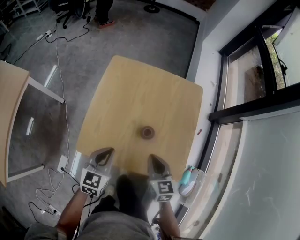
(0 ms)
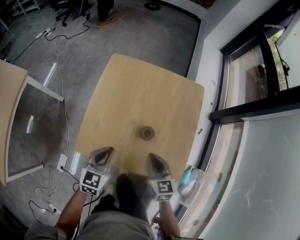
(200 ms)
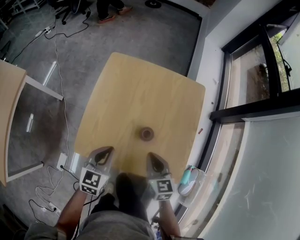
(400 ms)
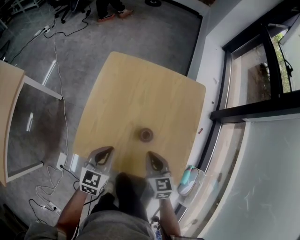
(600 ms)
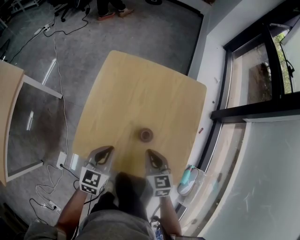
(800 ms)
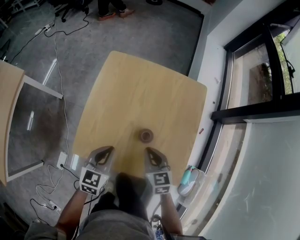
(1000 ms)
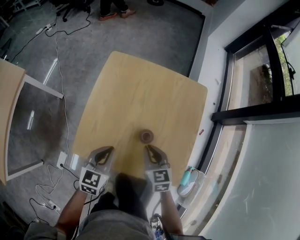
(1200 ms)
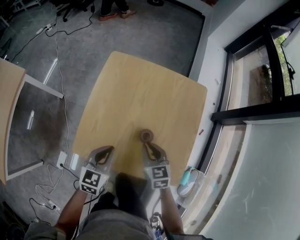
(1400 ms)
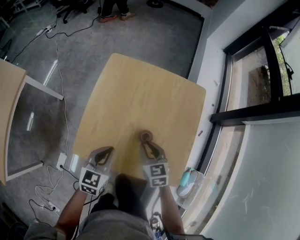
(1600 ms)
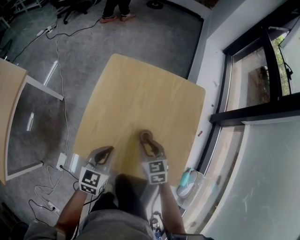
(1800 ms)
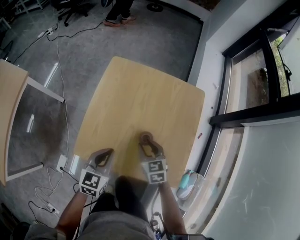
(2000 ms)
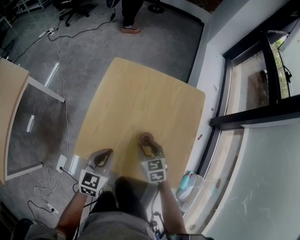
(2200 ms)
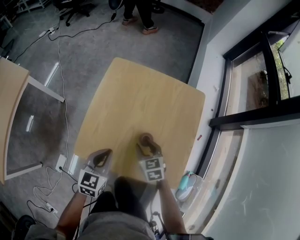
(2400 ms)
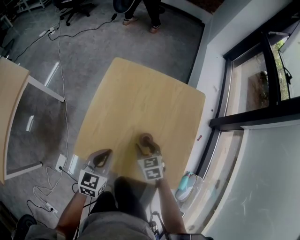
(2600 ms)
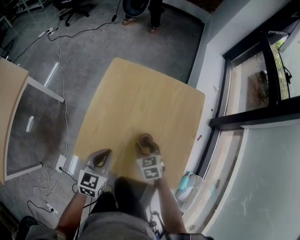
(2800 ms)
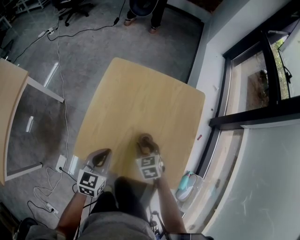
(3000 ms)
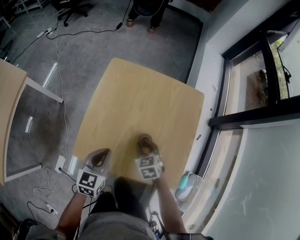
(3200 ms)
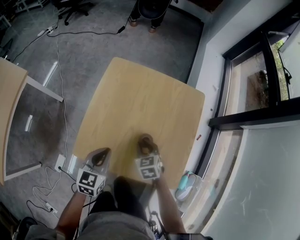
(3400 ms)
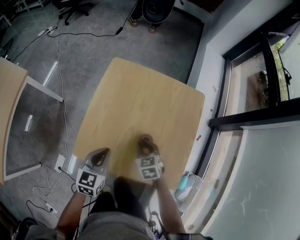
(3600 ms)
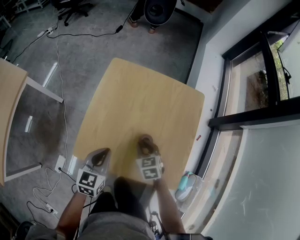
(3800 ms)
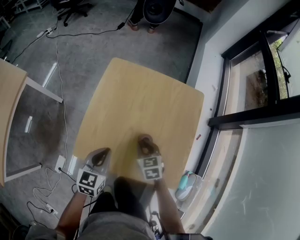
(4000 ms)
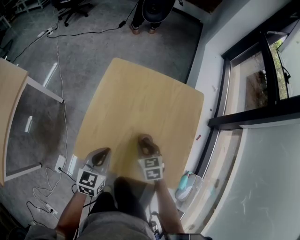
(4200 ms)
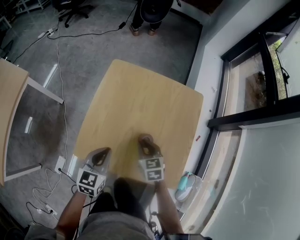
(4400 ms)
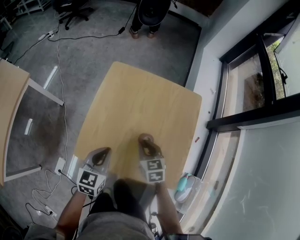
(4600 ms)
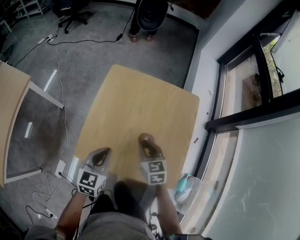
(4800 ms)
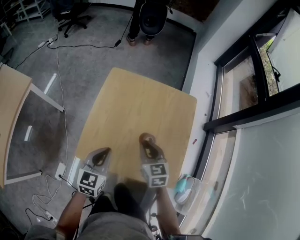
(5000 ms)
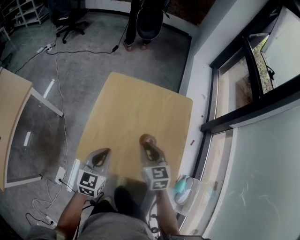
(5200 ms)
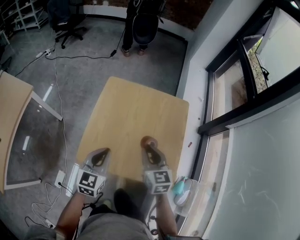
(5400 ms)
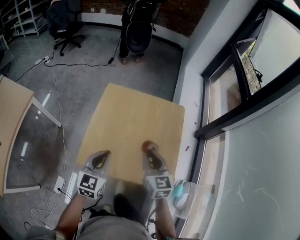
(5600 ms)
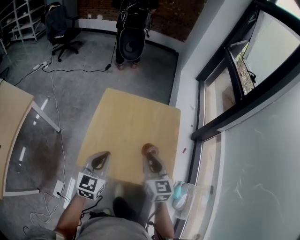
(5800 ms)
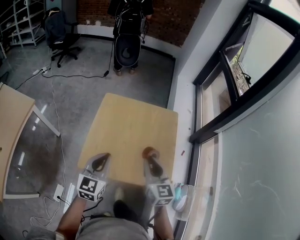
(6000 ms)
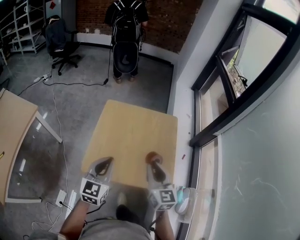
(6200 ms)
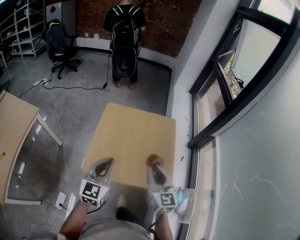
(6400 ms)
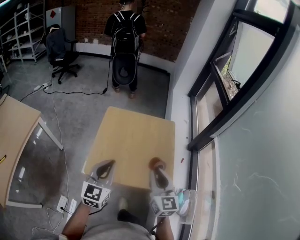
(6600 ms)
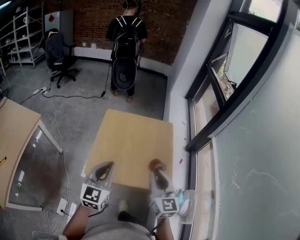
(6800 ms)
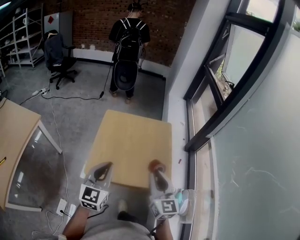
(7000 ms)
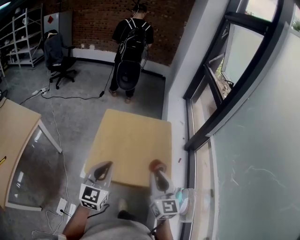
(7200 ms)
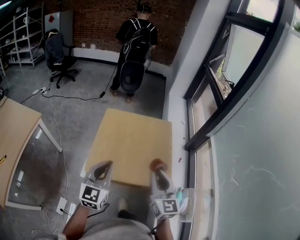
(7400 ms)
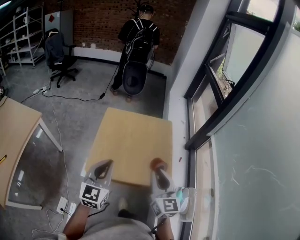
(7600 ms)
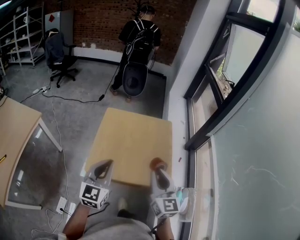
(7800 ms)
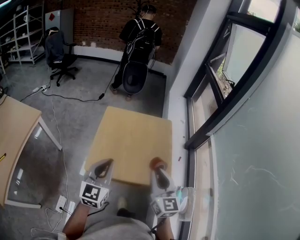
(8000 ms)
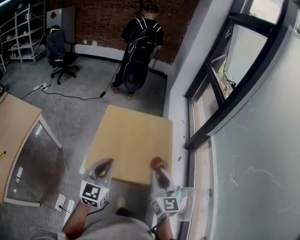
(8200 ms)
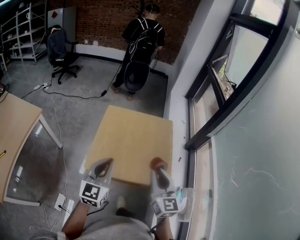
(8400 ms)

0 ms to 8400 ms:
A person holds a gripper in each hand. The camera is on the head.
0 ms to 1400 ms: The right gripper moves forward and downward, approximately 10 cm.
1400 ms to 2800 ms: The right gripper moves some 5 cm, and opens.
2800 ms to 4200 ms: The right gripper closes up.
4200 ms to 5600 ms: The left gripper is displaced upward by some 10 cm. Meanwhile the right gripper is displaced upward by some 20 cm, and rotates about 30 degrees.
5600 ms to 7000 ms: The right gripper travels backward and upward by approximately 20 cm. Meanwhile the left gripper heads upward and backward, covering about 15 cm.
7000 ms to 8400 ms: Both grippers stay put.

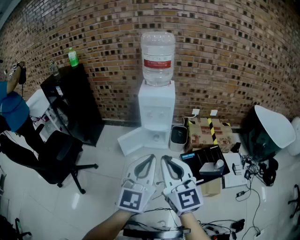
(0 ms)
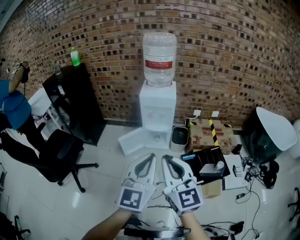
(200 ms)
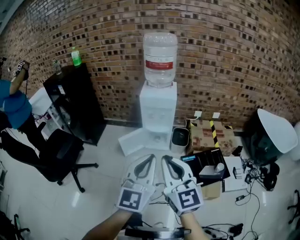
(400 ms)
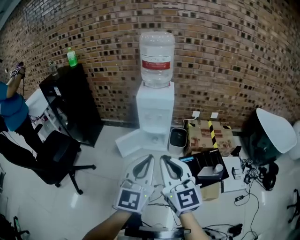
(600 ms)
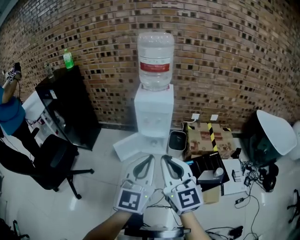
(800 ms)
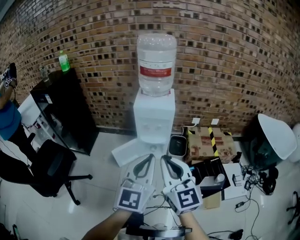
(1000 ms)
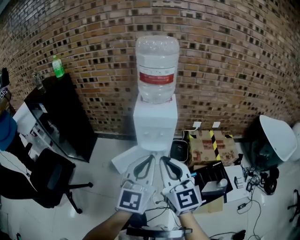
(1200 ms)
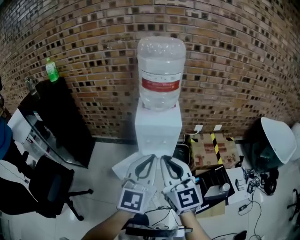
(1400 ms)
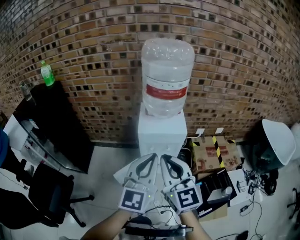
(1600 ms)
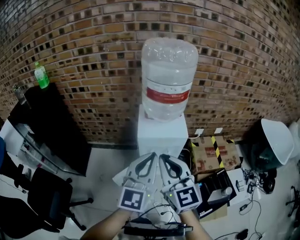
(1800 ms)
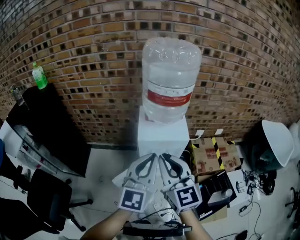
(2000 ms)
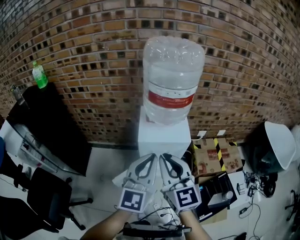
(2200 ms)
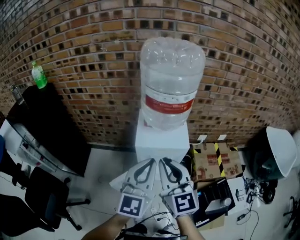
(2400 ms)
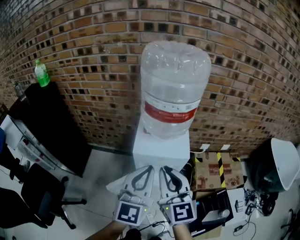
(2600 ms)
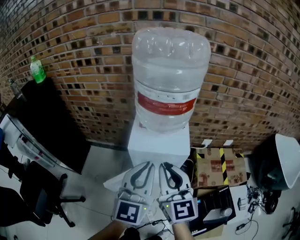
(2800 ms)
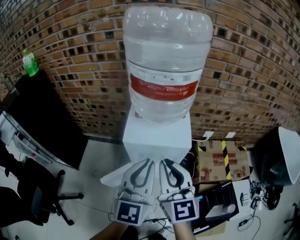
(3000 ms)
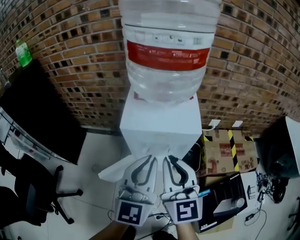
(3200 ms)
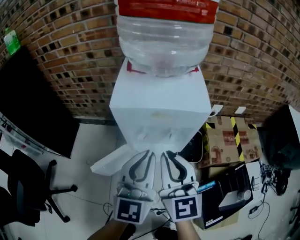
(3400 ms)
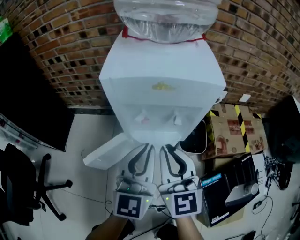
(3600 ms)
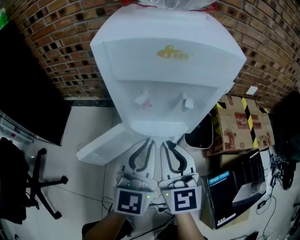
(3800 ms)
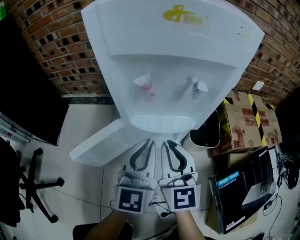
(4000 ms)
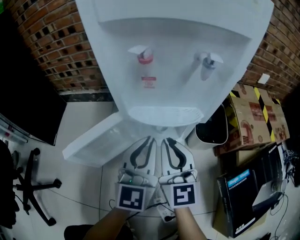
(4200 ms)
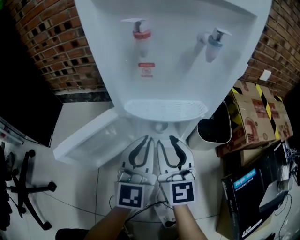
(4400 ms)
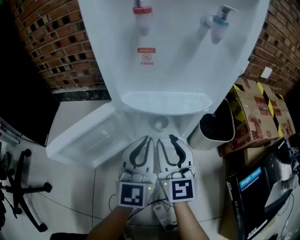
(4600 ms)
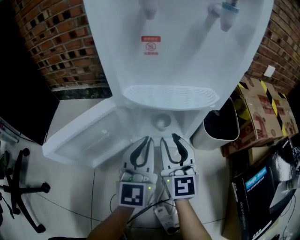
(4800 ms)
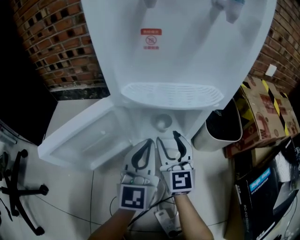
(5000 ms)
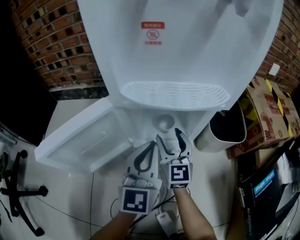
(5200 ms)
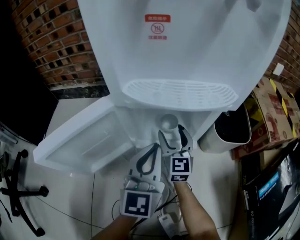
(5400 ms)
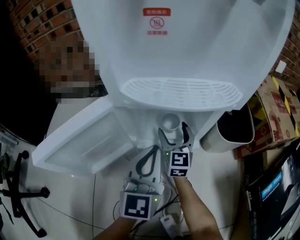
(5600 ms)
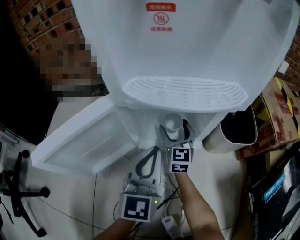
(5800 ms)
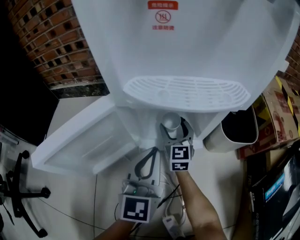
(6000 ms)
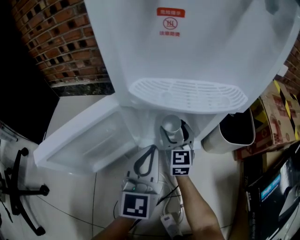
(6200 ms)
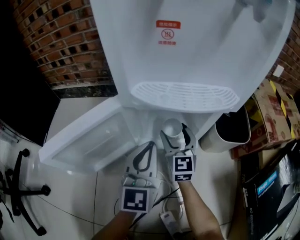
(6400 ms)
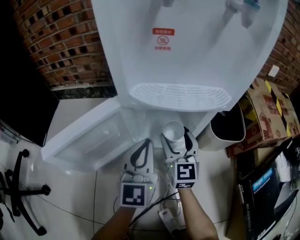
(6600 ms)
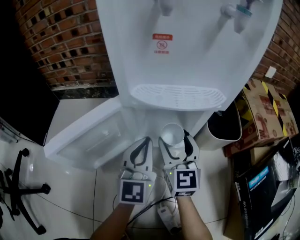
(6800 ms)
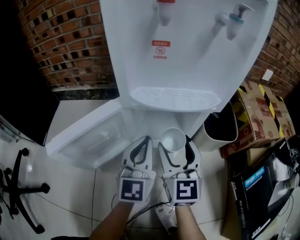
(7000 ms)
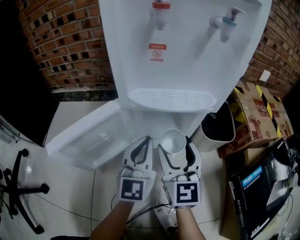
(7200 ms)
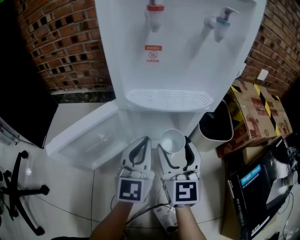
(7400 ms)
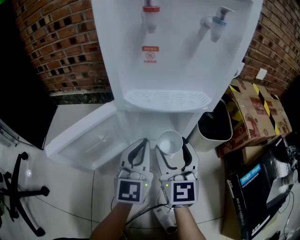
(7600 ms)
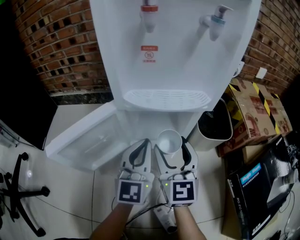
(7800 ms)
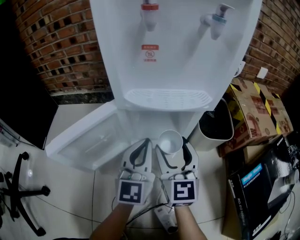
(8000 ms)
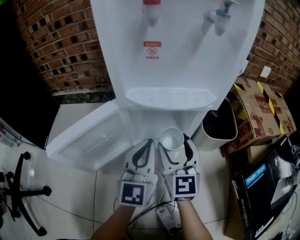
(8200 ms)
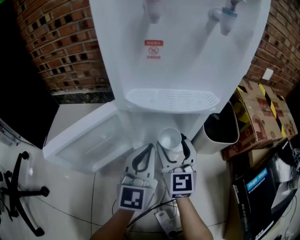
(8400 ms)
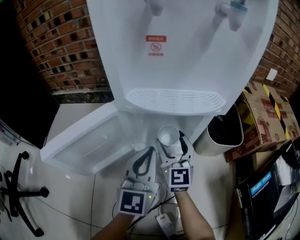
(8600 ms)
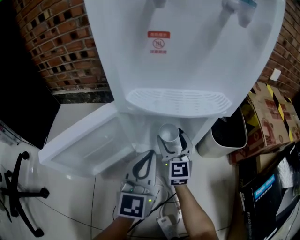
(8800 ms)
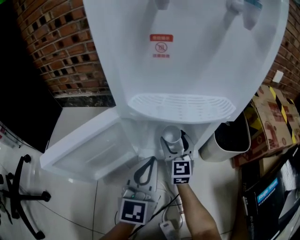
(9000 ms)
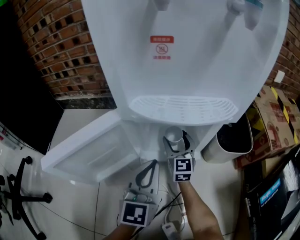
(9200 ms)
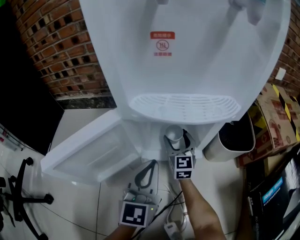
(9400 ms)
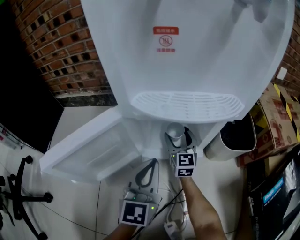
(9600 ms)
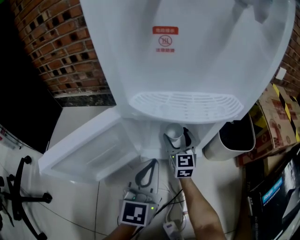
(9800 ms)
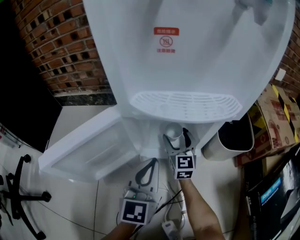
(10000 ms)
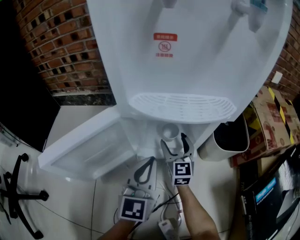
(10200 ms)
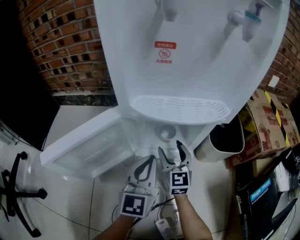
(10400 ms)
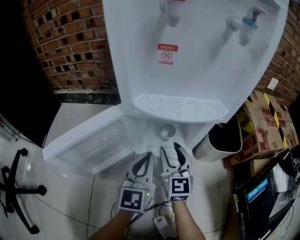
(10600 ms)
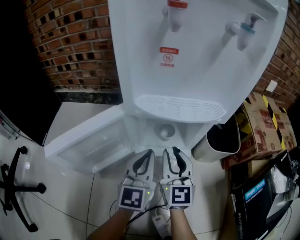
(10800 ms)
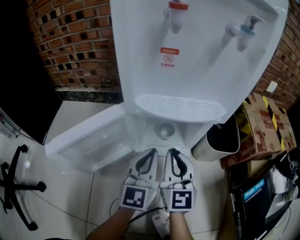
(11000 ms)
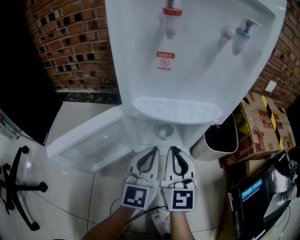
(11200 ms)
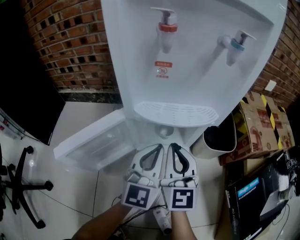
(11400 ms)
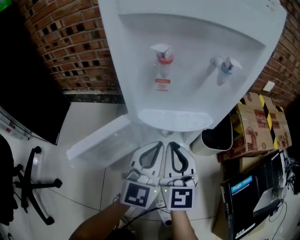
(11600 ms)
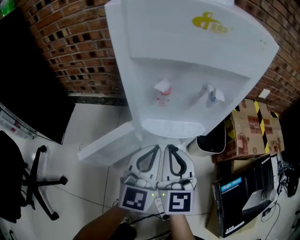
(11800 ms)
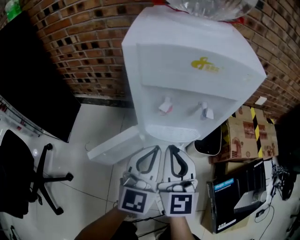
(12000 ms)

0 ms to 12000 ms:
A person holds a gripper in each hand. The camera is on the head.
0 ms to 1600 ms: The two grippers go roughly 35 cm forward.
1600 ms to 3000 ms: The grippers both shift forward and downward by approximately 20 cm.
3000 ms to 4400 ms: The two grippers go roughly 50 cm downward.
4400 ms to 6000 ms: The left gripper goes about 15 cm downward; the right gripper goes some 30 cm downward and forward, and opens its fingers.
6000 ms to 7600 ms: The left gripper heads upward, covering roughly 5 cm. Meanwhile the right gripper shifts about 25 cm upward and backward.
7600 ms to 9000 ms: The right gripper moves downward and forward, roughly 20 cm.
9000 ms to 10400 ms: The grippers move only a little.
10400 ms to 12000 ms: The grippers both shift upward by about 35 cm. The right gripper closes its fingers.

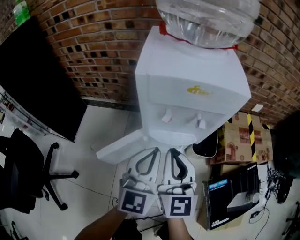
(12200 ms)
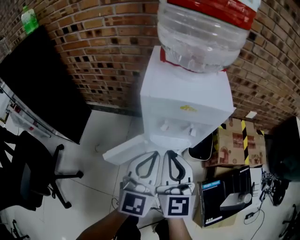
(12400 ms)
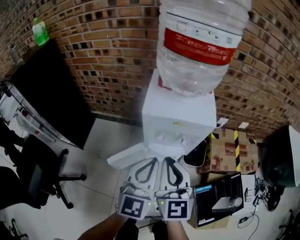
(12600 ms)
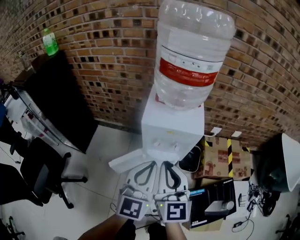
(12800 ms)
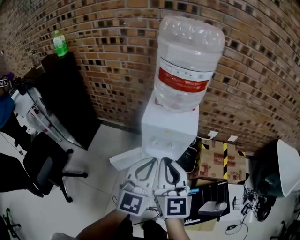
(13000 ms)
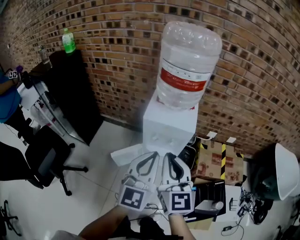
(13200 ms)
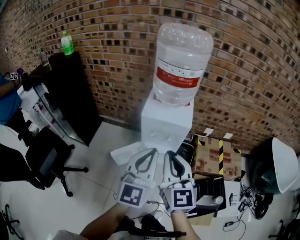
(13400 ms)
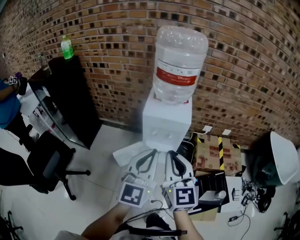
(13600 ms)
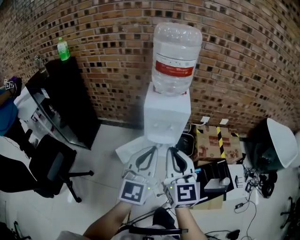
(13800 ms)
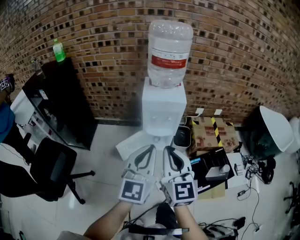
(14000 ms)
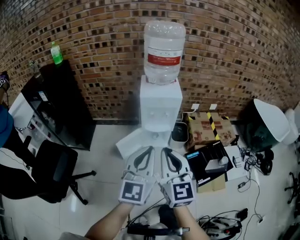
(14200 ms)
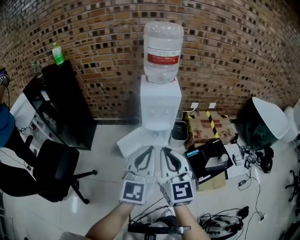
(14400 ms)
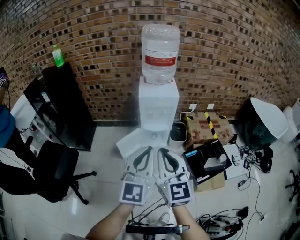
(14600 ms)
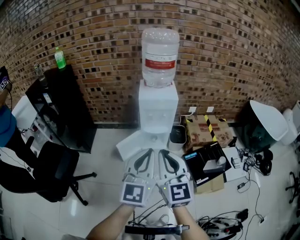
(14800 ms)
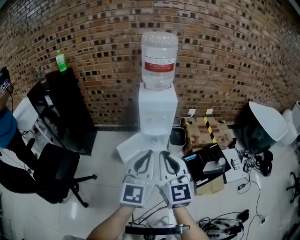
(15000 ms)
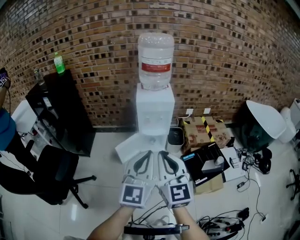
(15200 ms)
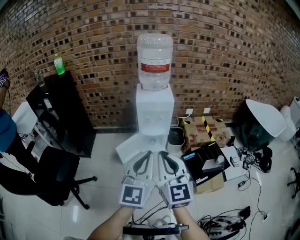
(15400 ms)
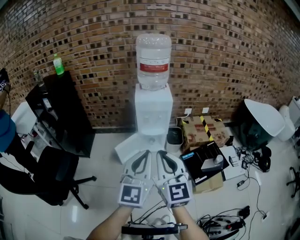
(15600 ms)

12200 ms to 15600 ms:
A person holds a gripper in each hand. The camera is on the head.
12200 ms to 13800 ms: The grippers both shift upward and backward by approximately 40 cm.
13800 ms to 15600 ms: The grippers both shift backward by about 20 cm.
